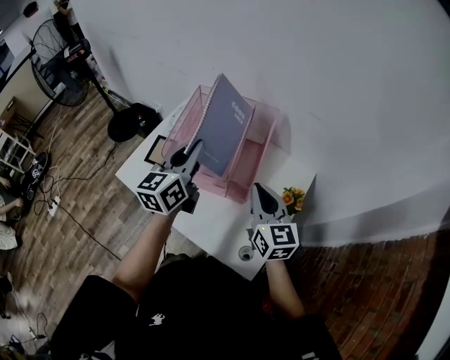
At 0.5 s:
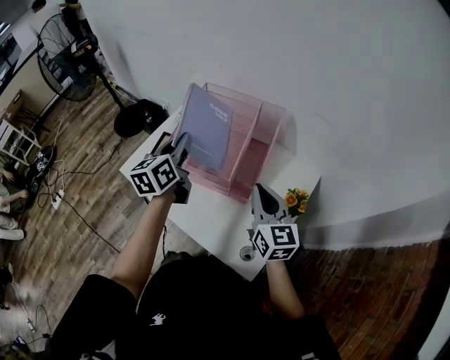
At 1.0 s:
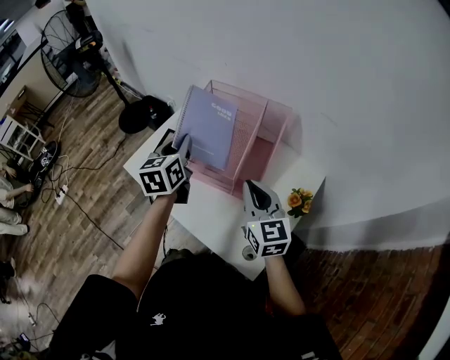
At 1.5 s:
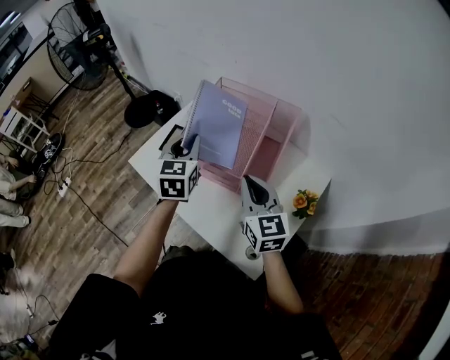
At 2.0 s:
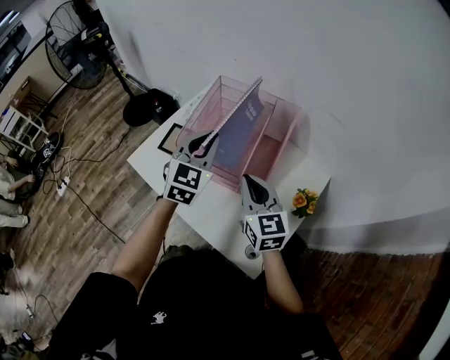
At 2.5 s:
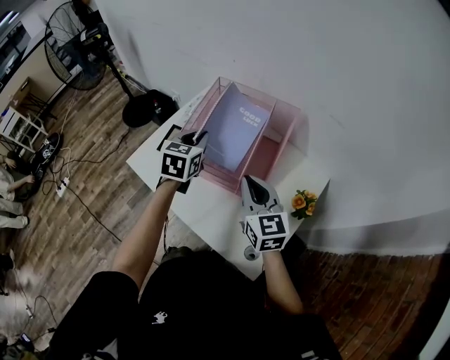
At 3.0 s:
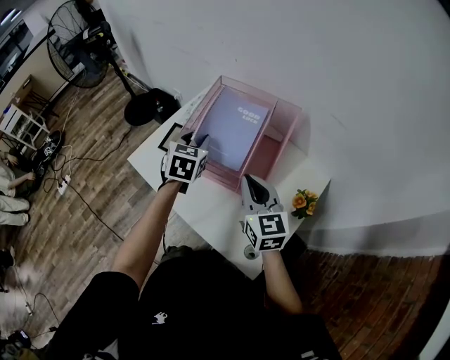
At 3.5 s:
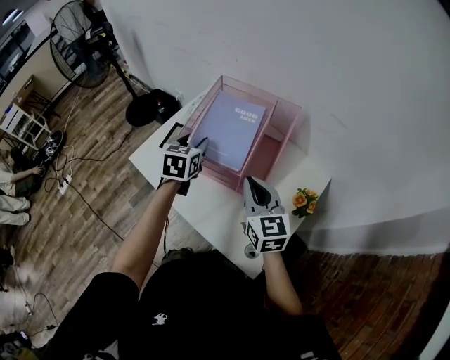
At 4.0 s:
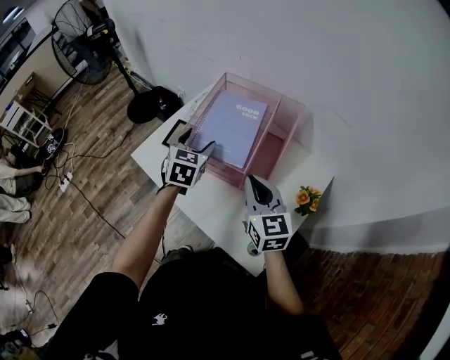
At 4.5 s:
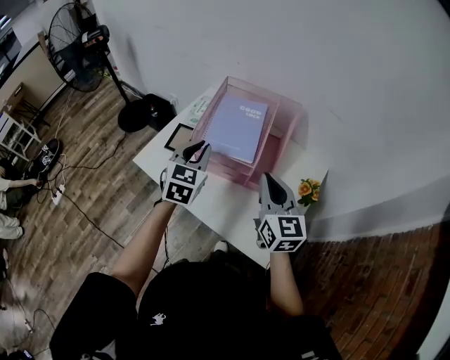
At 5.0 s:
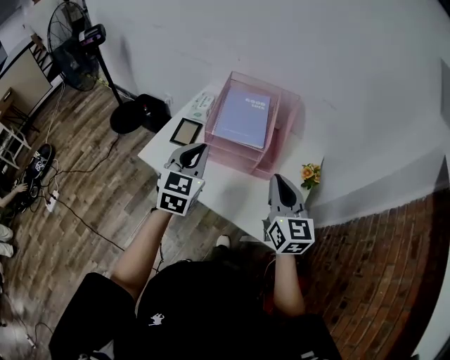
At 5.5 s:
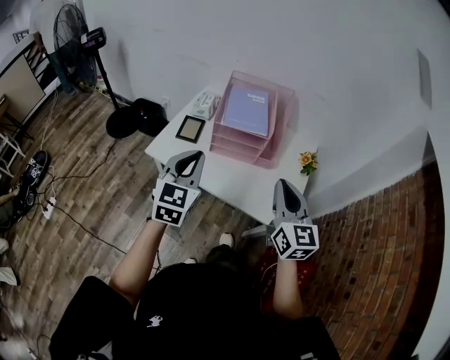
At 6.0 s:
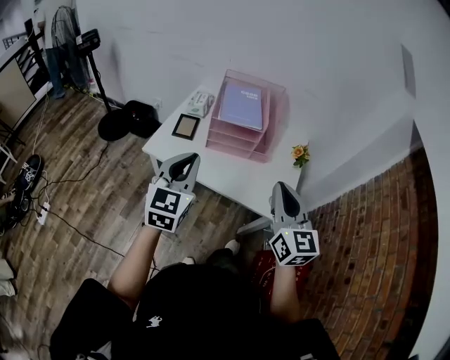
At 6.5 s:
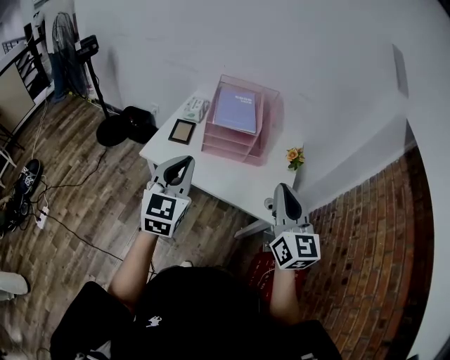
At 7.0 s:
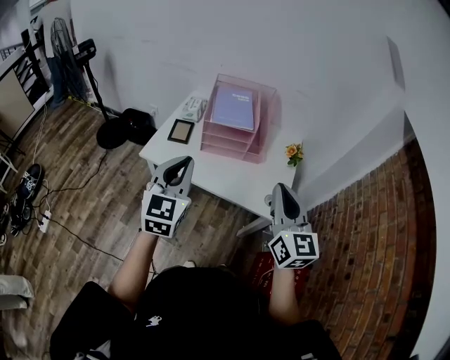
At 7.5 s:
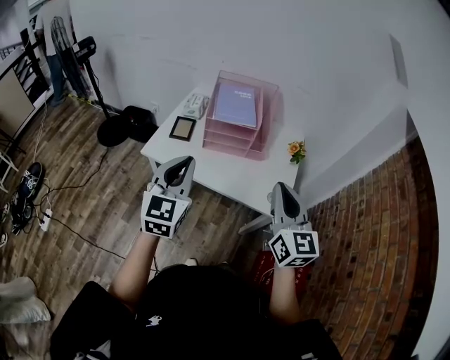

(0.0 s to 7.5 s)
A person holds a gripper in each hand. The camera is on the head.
0.0 s - 2.0 s: The left gripper changes its angle by some 40 degrees. Meanwhile the right gripper moves to the left, some 5 cm.
2.0 s - 4.0 s: The left gripper travels downward and to the left by some 10 cm, swivels some 20 degrees, and opens up.
4.0 s - 5.5 s: The right gripper travels backward and upward by some 25 cm, and turns by some 20 degrees; the left gripper moves backward, to the left and upward, about 30 cm, turns by some 30 degrees, and closes up.
5.5 s - 7.5 s: The two grippers go about 10 cm backward.

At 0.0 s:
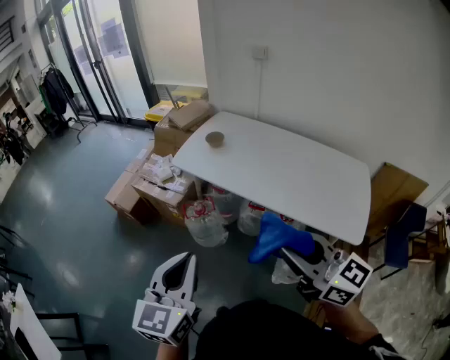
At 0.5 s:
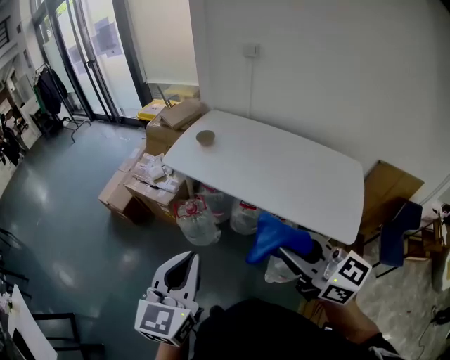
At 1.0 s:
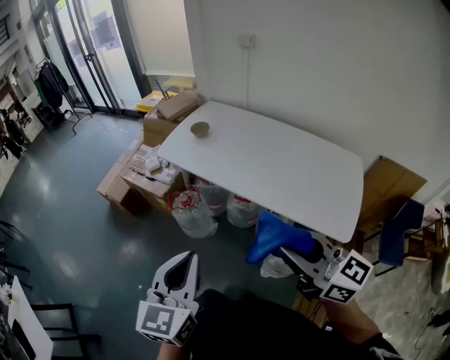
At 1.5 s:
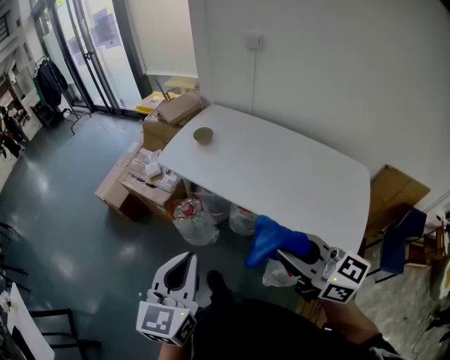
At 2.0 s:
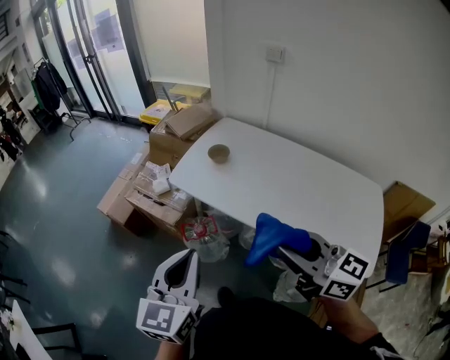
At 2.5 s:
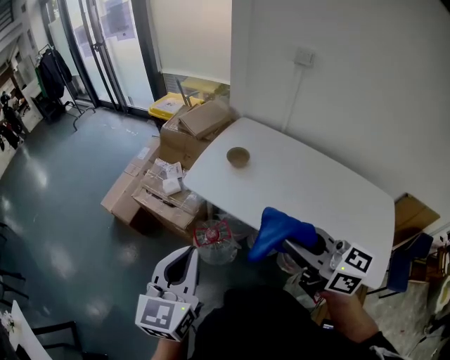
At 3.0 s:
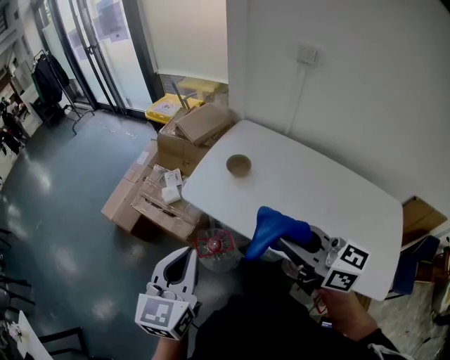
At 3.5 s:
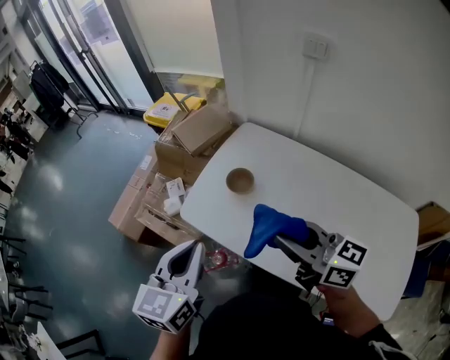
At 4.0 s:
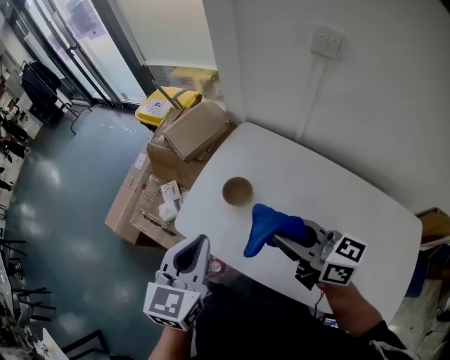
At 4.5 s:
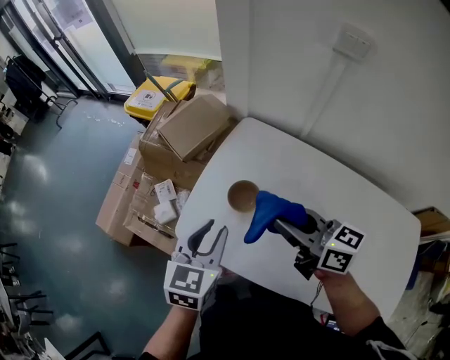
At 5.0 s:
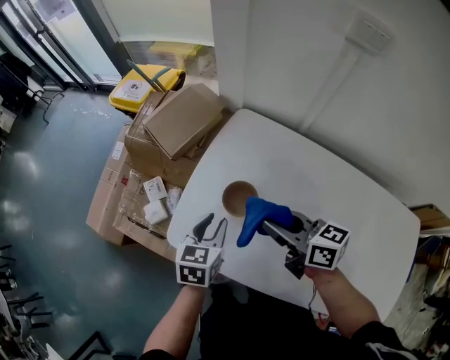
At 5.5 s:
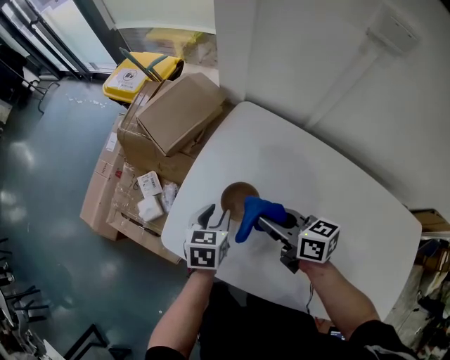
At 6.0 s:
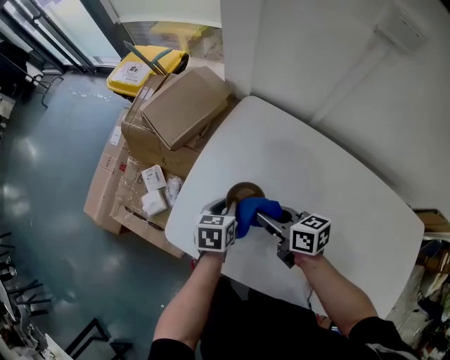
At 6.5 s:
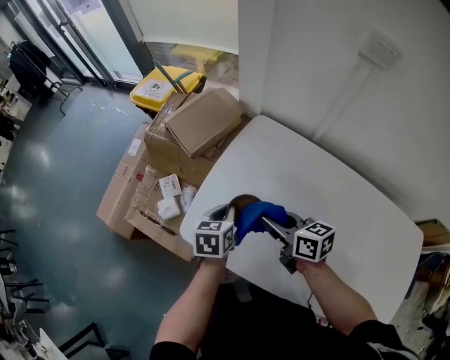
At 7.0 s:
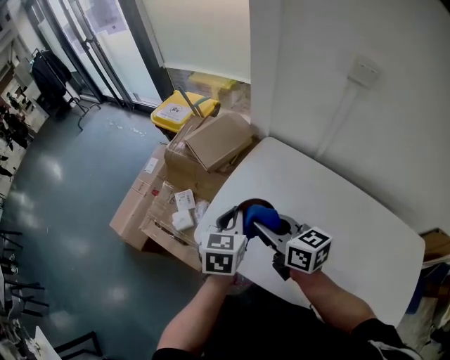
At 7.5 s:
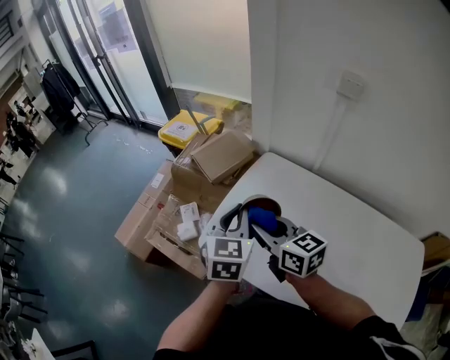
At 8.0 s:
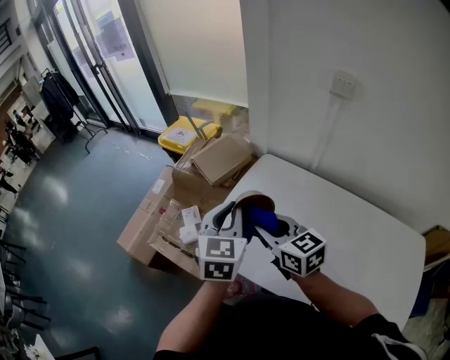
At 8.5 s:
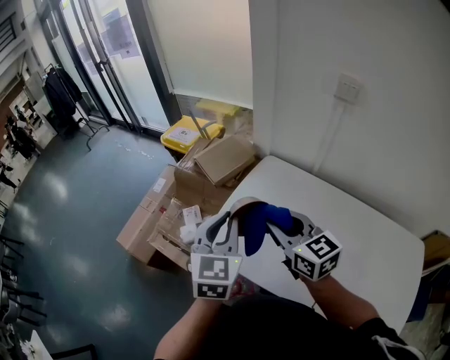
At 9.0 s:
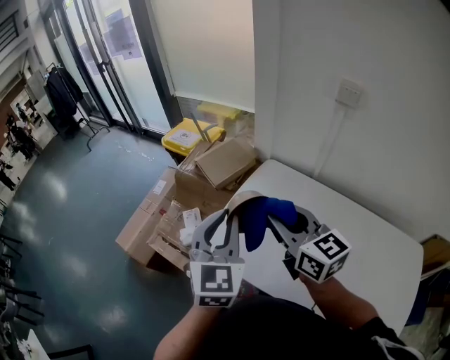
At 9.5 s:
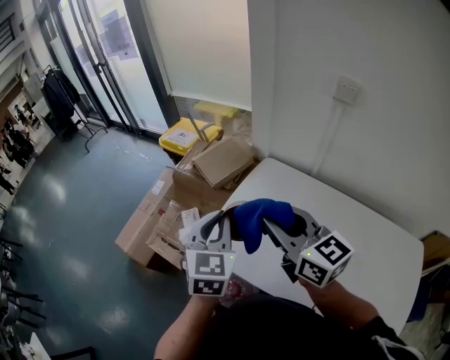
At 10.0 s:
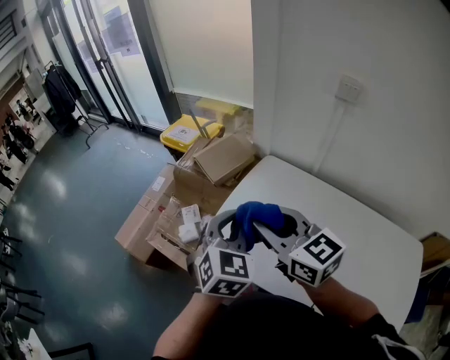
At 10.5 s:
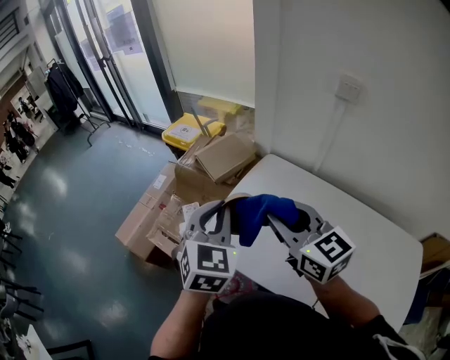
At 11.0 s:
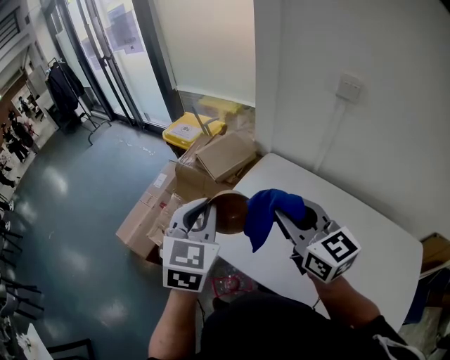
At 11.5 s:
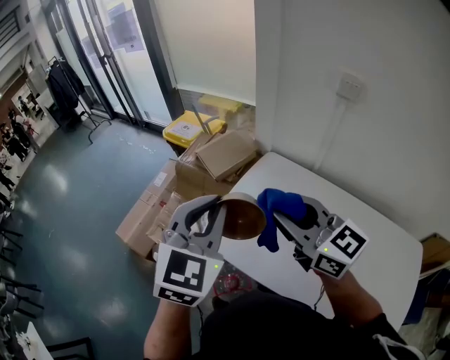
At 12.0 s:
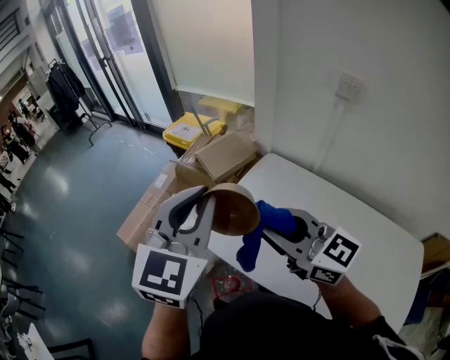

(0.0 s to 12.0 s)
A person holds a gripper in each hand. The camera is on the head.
0.0 s - 2.0 s: Both grippers travel together forward, some 20 cm.
2.0 s - 4.0 s: Both grippers move forward, some 40 cm.
4.0 s - 6.0 s: Both grippers move downward and forward, about 35 cm. The left gripper turns by some 30 degrees, and opens and closes again; the right gripper changes its angle by approximately 30 degrees.
6.0 s - 8.0 s: The two grippers go about 30 cm upward. The left gripper rotates approximately 40 degrees, while the right gripper turns by roughly 30 degrees.
8.0 s - 10.0 s: The right gripper is displaced upward by approximately 10 cm.
10.0 s - 12.0 s: The left gripper goes roughly 15 cm upward, and swivels some 20 degrees.

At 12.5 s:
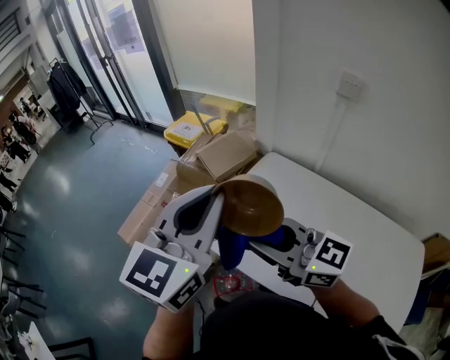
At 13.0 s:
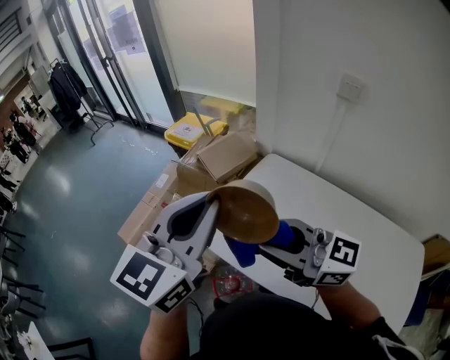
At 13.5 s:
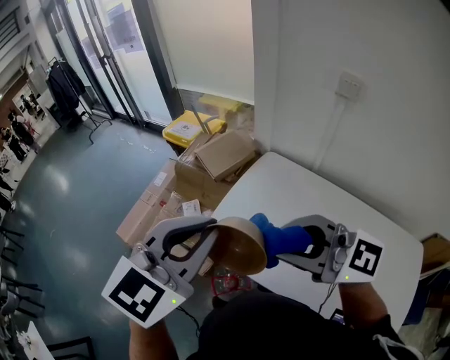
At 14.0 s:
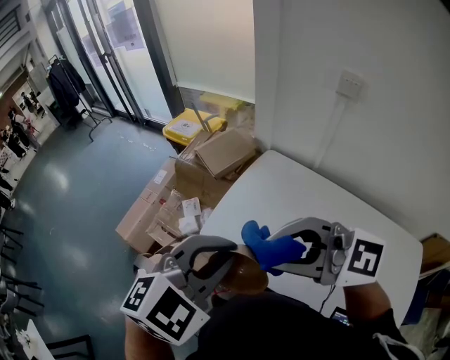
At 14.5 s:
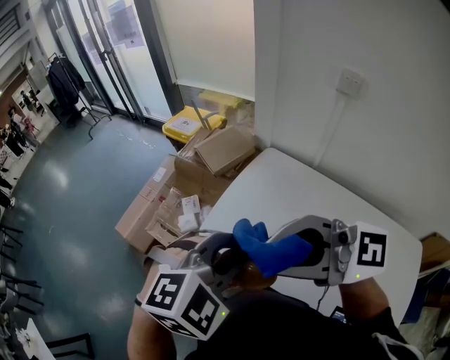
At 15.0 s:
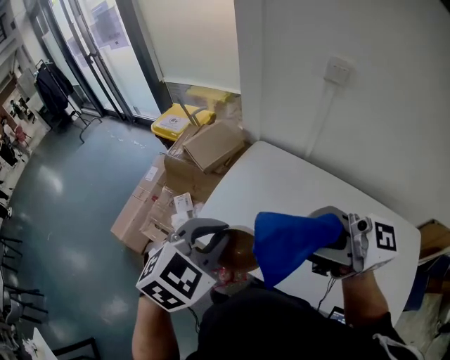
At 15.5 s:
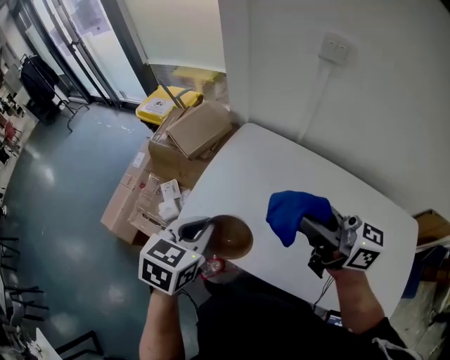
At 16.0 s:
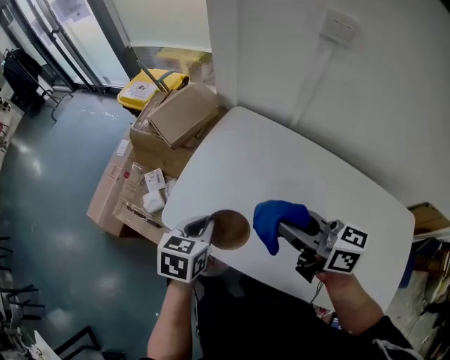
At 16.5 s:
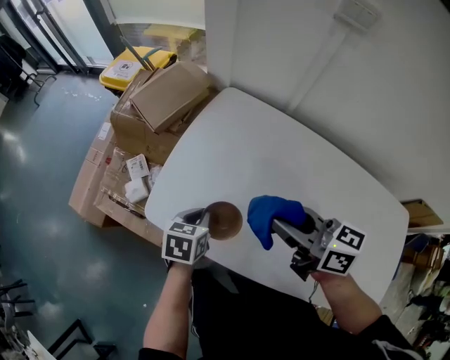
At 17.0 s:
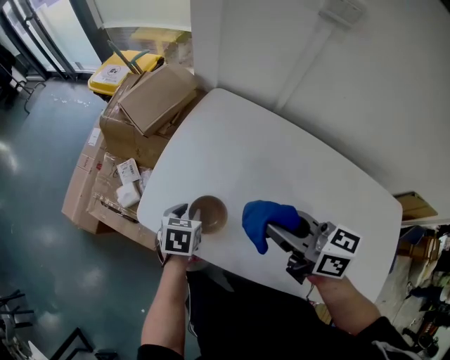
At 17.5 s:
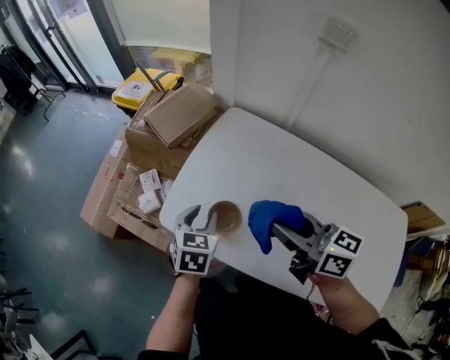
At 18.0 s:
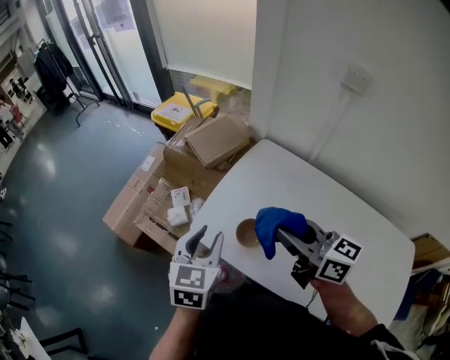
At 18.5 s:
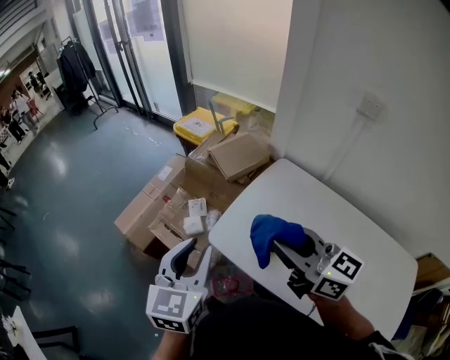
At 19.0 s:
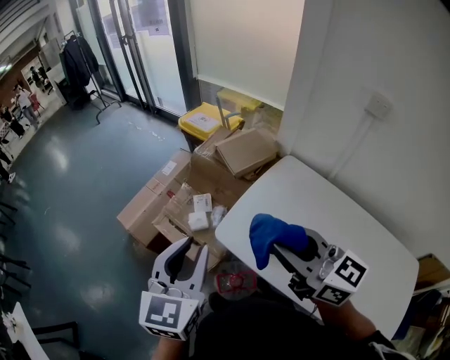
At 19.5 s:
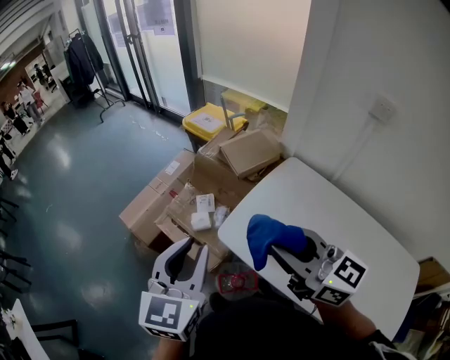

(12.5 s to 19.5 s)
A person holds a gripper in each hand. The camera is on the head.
12.5 s - 14.5 s: The left gripper moves some 15 cm, and tips its fingers downward by approximately 40 degrees. The right gripper travels upward by some 10 cm, and swivels about 30 degrees.
14.5 s - 16.0 s: Both grippers travel together downward, about 25 cm. The right gripper changes its angle by about 60 degrees; the left gripper twists some 60 degrees counterclockwise, seen from behind.
16.0 s - 17.5 s: The left gripper travels downward and back again, some 15 cm each way, and opens.
17.5 s - 19.5 s: The left gripper moves upward and to the left, some 35 cm, and tips its fingers upward by roughly 30 degrees; the right gripper travels to the left and upward by roughly 25 cm, and changes its angle by approximately 30 degrees.
